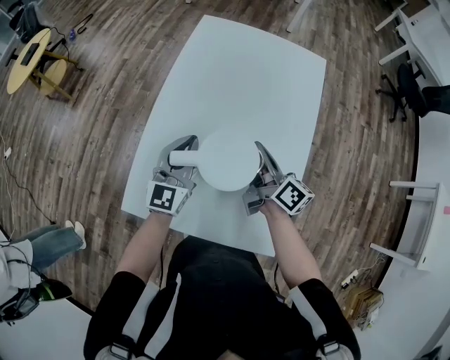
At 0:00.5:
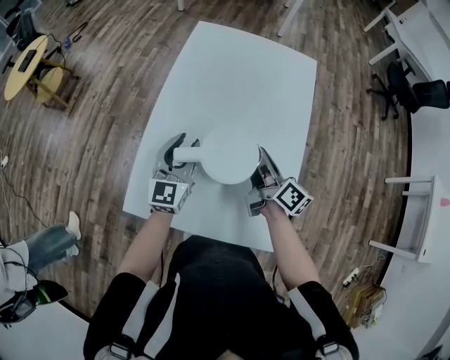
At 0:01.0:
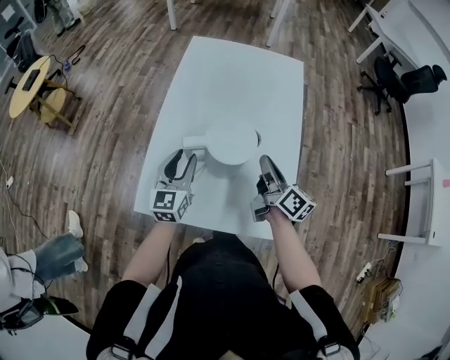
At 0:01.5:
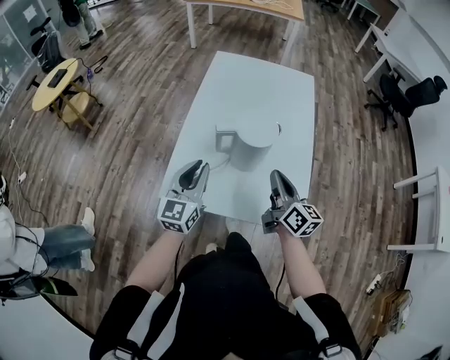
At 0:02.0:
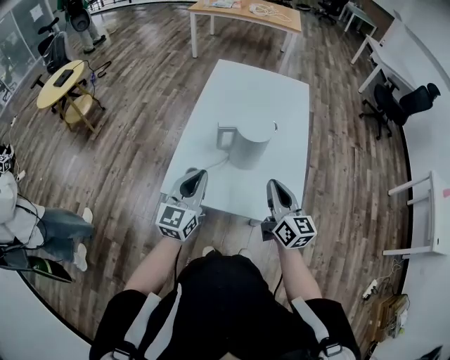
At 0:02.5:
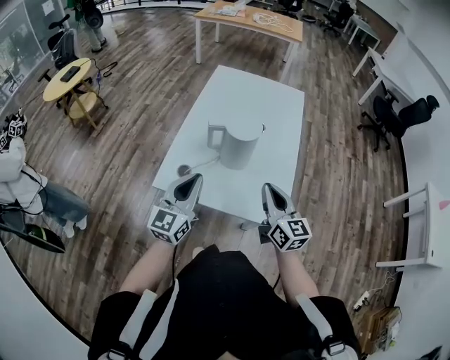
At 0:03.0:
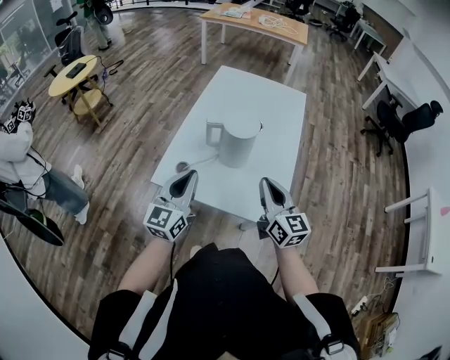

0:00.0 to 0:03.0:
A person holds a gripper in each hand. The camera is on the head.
0:00.0 to 0:01.5: The left gripper ends up roughly 15 cm from where it was, and opens, then closes once more.
0:01.5 to 0:03.0: The left gripper ends up approximately 10 cm from where it was.

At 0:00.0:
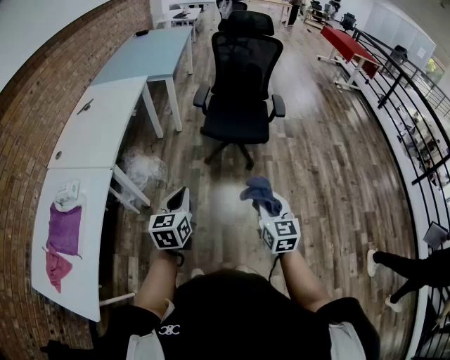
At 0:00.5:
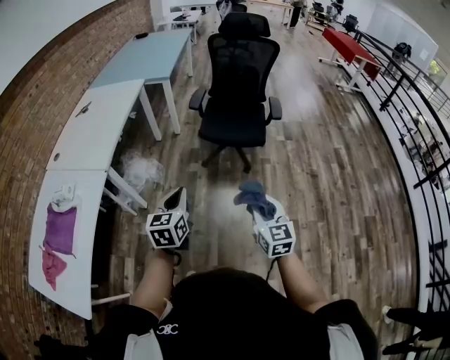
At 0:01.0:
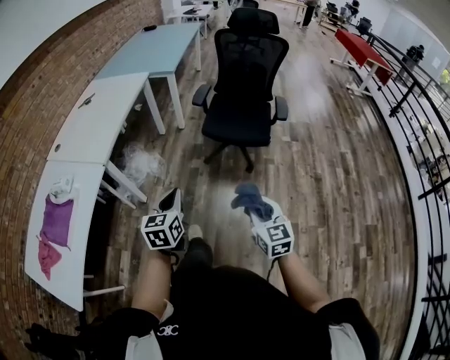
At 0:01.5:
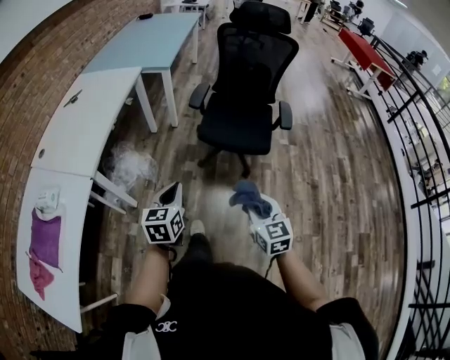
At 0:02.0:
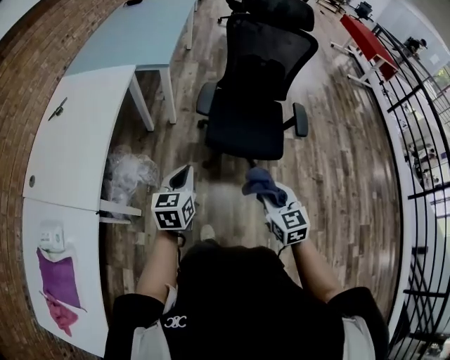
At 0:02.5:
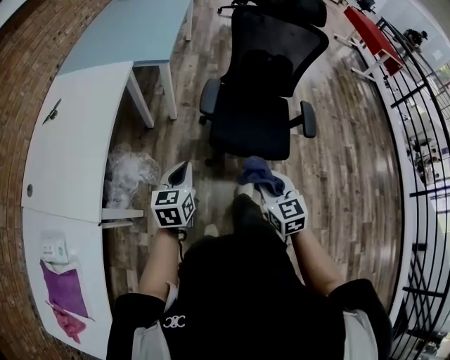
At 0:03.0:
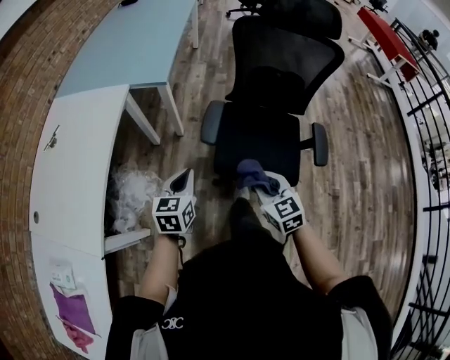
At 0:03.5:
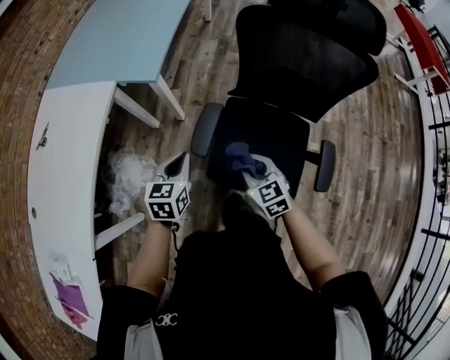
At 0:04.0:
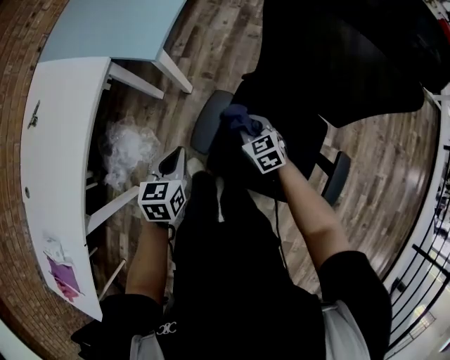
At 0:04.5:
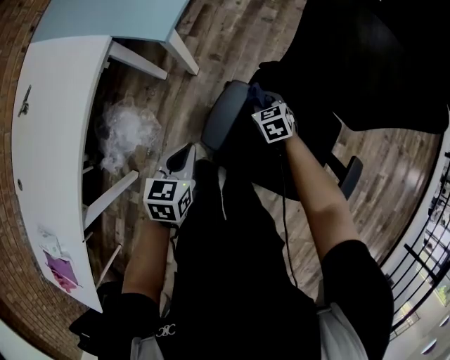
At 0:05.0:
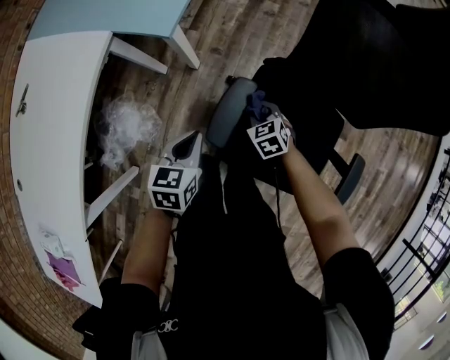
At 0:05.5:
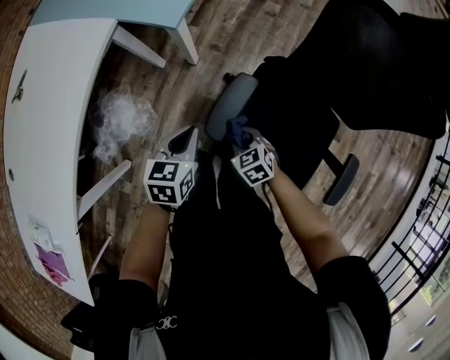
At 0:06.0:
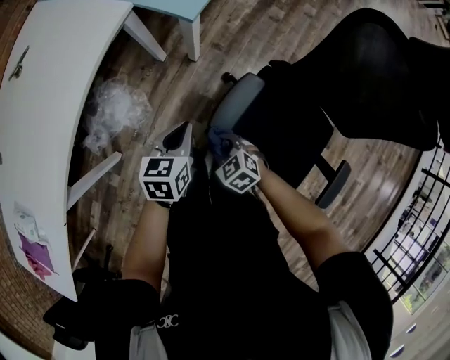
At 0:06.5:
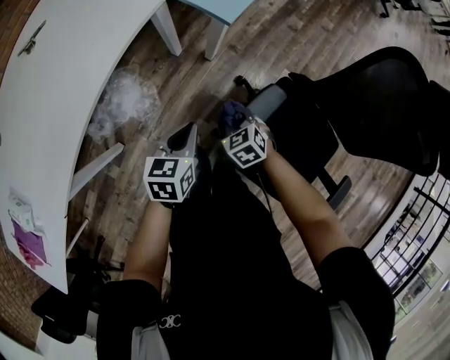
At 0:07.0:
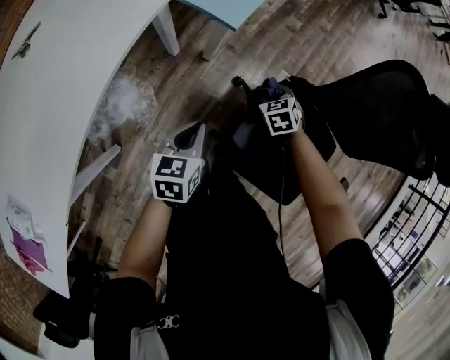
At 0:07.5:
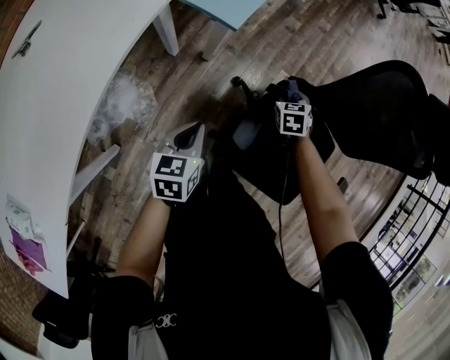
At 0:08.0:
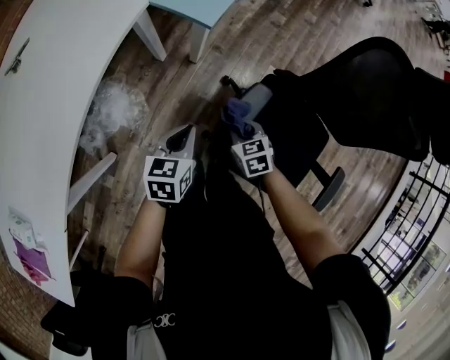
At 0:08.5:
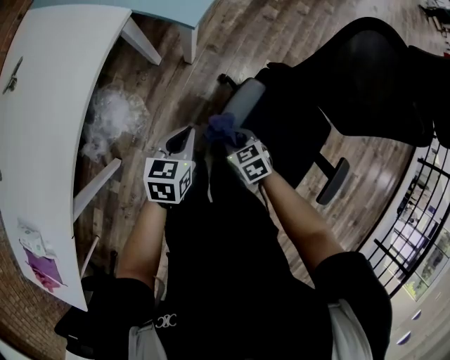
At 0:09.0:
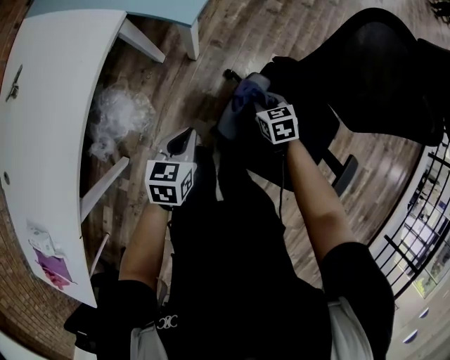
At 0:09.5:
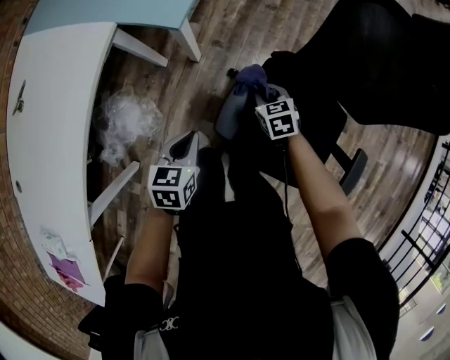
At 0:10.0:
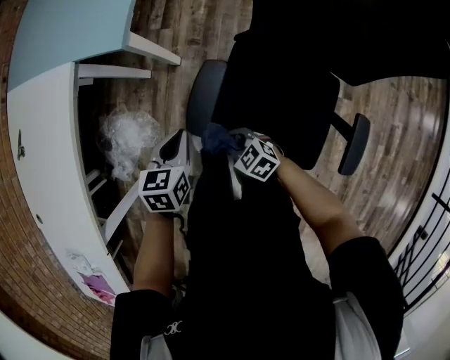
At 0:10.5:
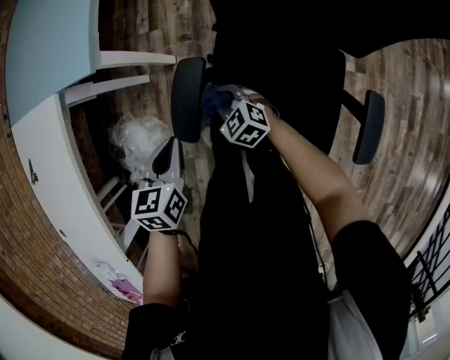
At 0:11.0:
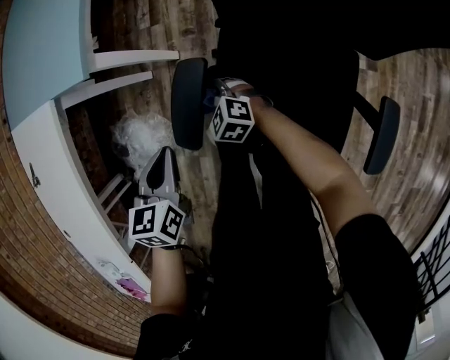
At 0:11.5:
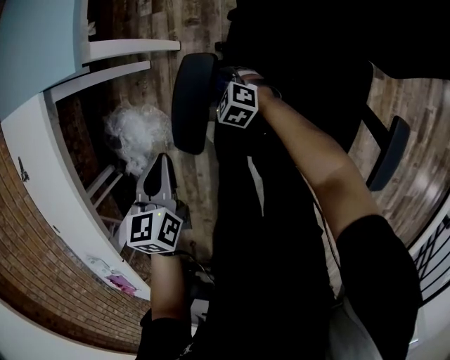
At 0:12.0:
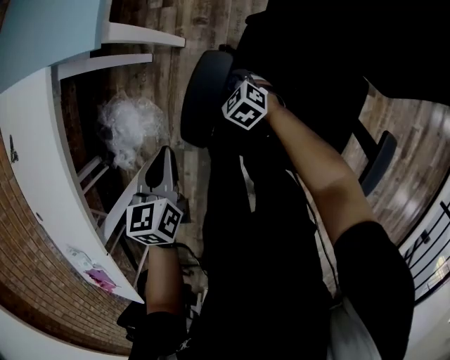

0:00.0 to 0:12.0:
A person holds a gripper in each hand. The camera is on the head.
0:00.0 to 0:02.0: The two grippers go some 35 cm forward.
0:02.0 to 0:04.0: Both grippers are carried forward, about 50 cm. The right gripper changes its angle by some 30 degrees. The left gripper turns by some 20 degrees.
0:04.0 to 0:06.0: The right gripper goes approximately 20 cm to the left and backward, and swivels approximately 30 degrees, while the left gripper is displaced to the left and downward by some 10 cm.
0:06.0 to 0:08.0: The right gripper rotates approximately 30 degrees.
0:08.0 to 0:10.0: The left gripper heads to the right, covering approximately 10 cm; the right gripper moves forward and backward over approximately 20 cm, changing direction 2 times.
0:10.0 to 0:12.0: The right gripper travels forward and downward by roughly 20 cm. Meanwhile the left gripper moves some 5 cm.

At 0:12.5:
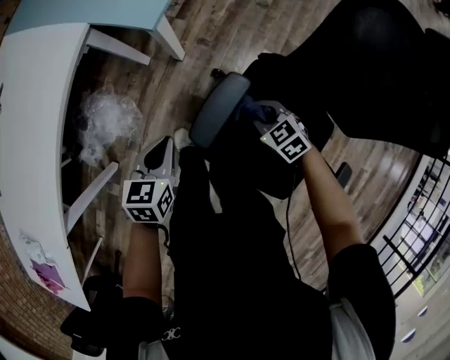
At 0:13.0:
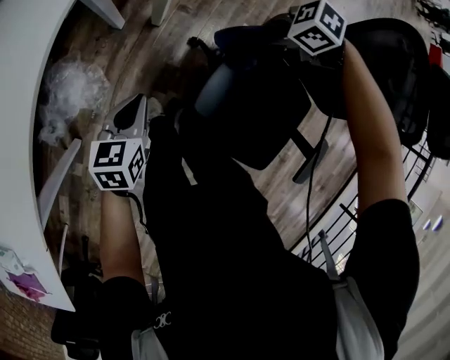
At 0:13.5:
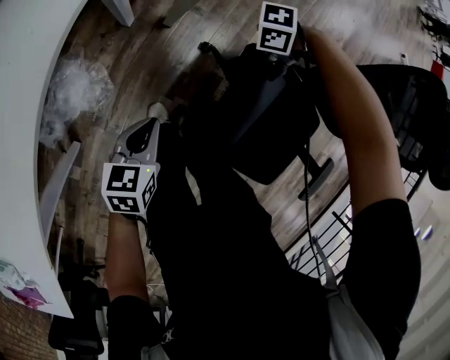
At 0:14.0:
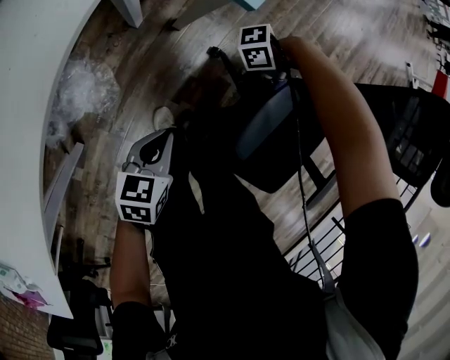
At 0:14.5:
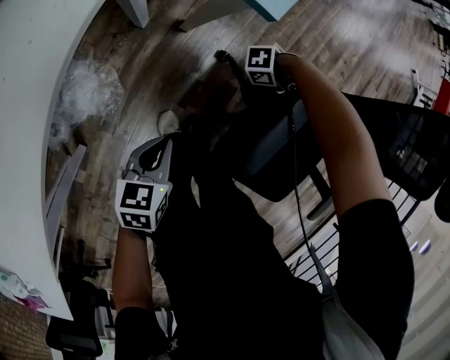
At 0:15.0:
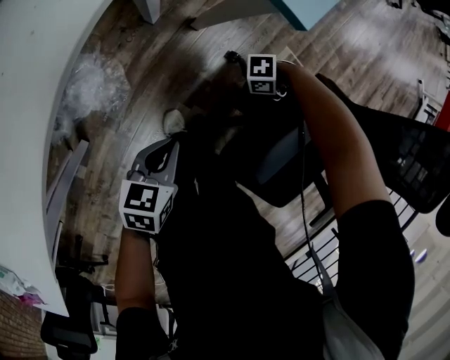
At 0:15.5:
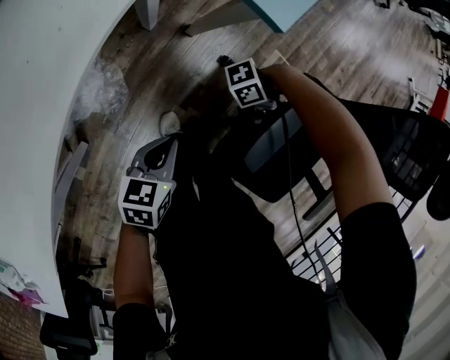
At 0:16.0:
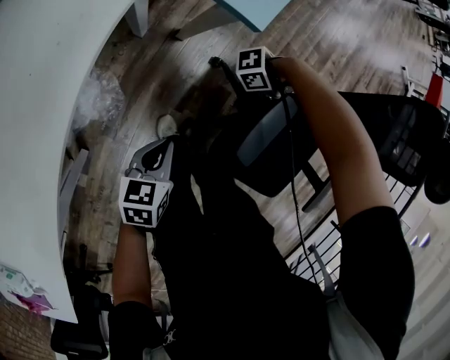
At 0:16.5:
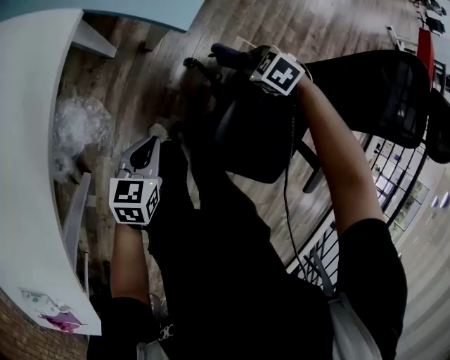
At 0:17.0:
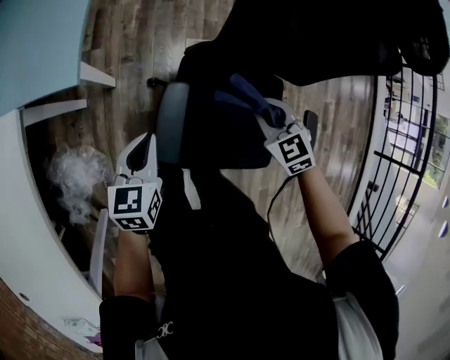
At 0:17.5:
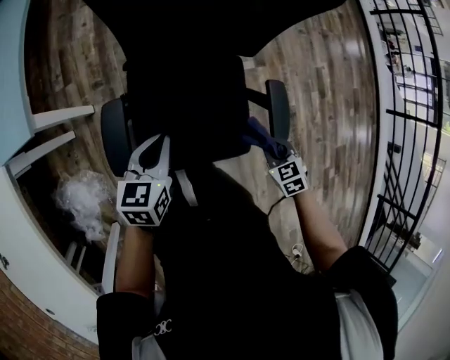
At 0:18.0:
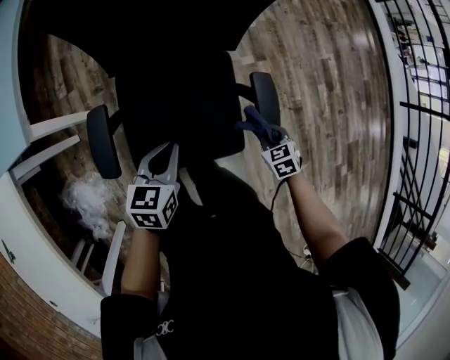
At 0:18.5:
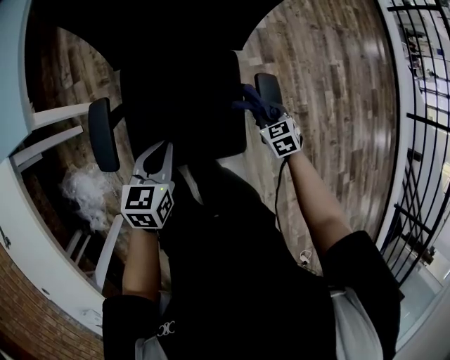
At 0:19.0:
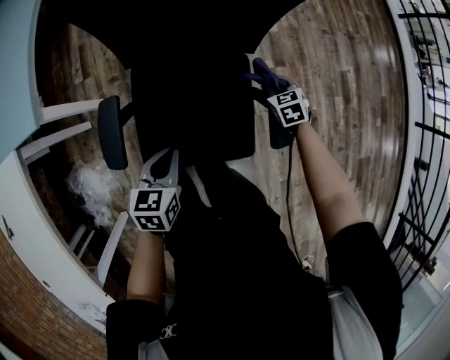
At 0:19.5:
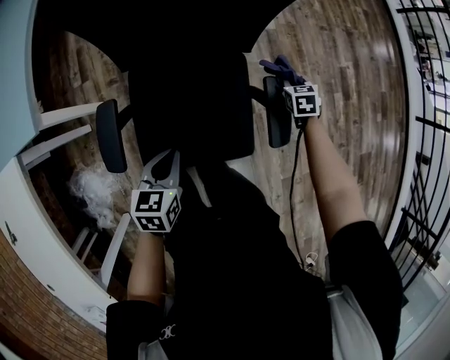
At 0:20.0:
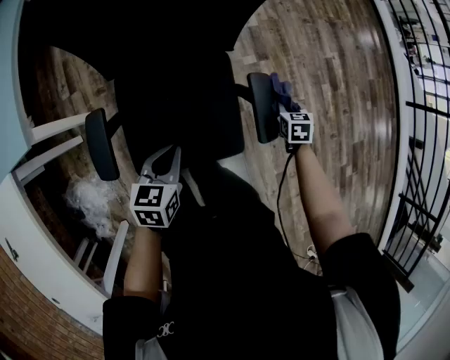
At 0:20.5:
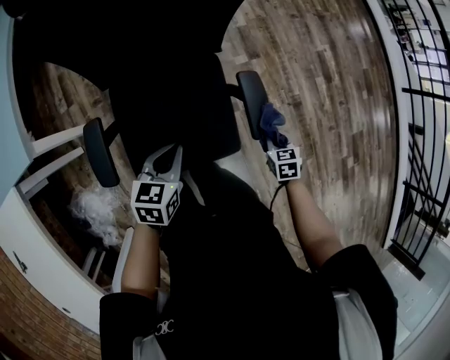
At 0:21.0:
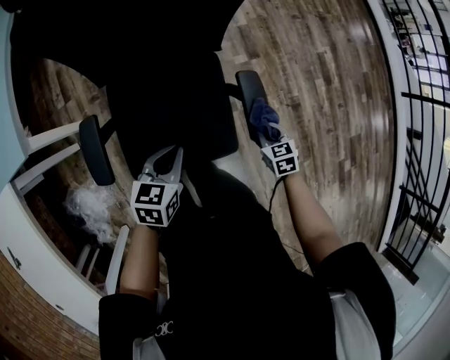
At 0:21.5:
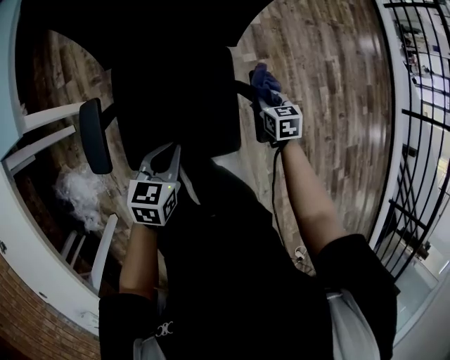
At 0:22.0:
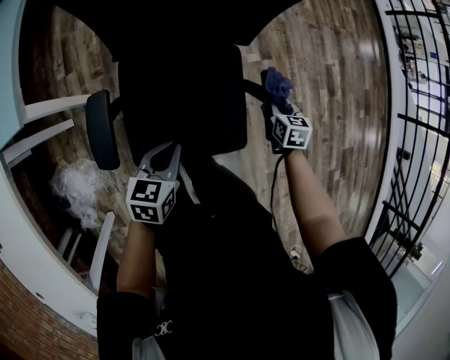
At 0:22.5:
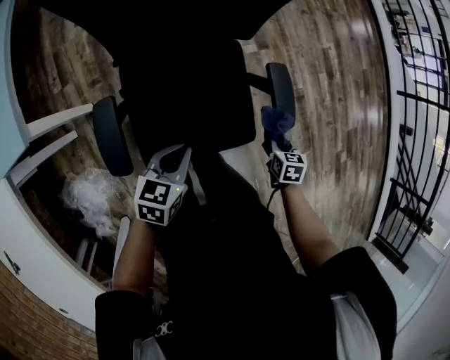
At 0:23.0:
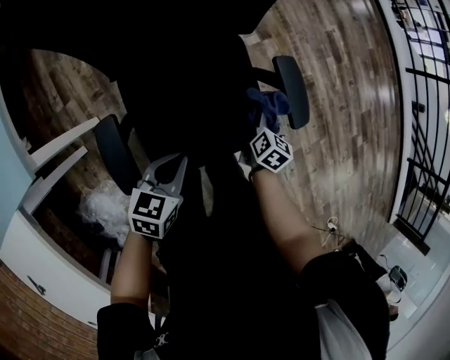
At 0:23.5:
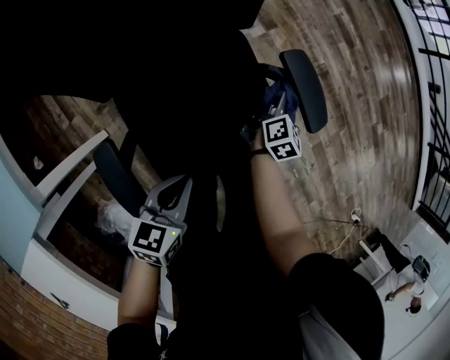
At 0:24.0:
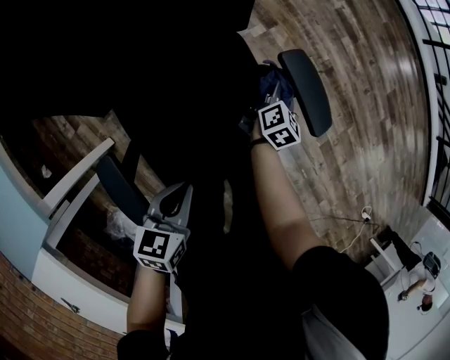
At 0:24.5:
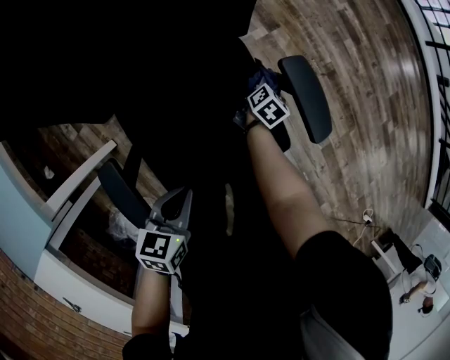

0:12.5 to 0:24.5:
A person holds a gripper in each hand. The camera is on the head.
0:12.5 to 0:14.5: The right gripper shifts roughly 20 cm downward, and turns by about 90 degrees; the left gripper shifts by some 20 cm.
0:14.5 to 0:16.5: The right gripper travels upward by approximately 15 cm, and tilts its fingers approximately 40 degrees downward, while the left gripper is displaced upward by approximately 5 cm.
0:16.5 to 0:18.5: The two grippers travel together, roughly 50 cm. The right gripper twists approximately 60 degrees clockwise, seen from behind; the left gripper changes its angle by approximately 30 degrees.
0:18.5 to 0:20.5: The left gripper moves approximately 5 cm, while the right gripper travels to the right and backward by some 15 cm, and swivels approximately 30 degrees.
0:20.5 to 0:22.5: The left gripper heads to the left, covering about 5 cm. The right gripper reaches some 15 cm forward, then returns.
0:22.5 to 0:24.5: The right gripper travels downward, to the left and forward by approximately 25 cm, and rotates around the line of its fingers by some 50 degrees, clockwise from behind, while the left gripper shifts roughly 5 cm downward.
